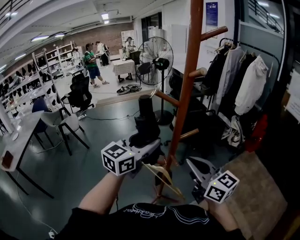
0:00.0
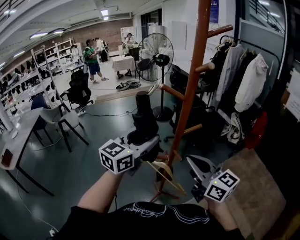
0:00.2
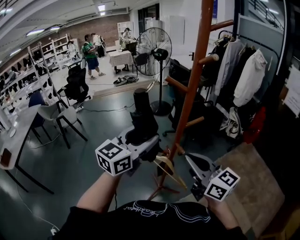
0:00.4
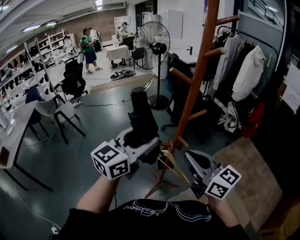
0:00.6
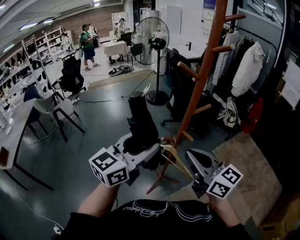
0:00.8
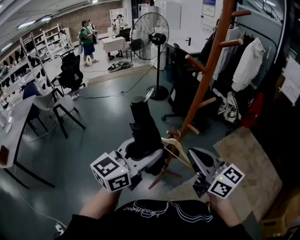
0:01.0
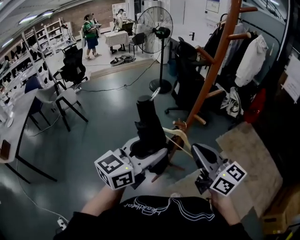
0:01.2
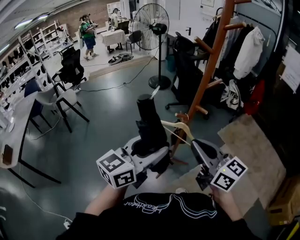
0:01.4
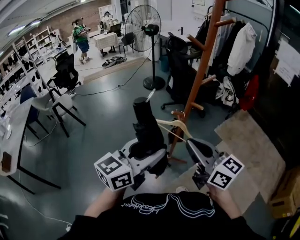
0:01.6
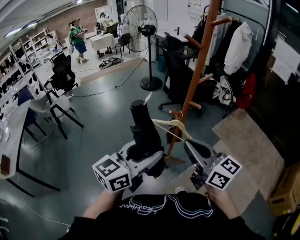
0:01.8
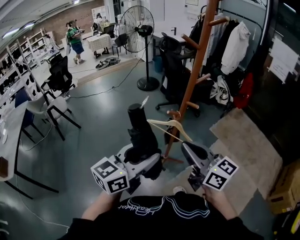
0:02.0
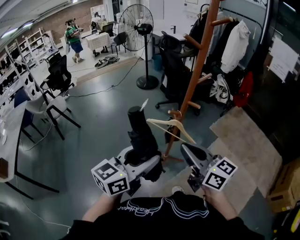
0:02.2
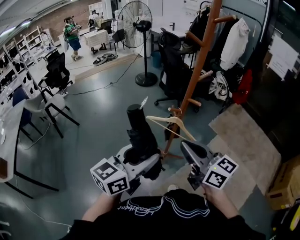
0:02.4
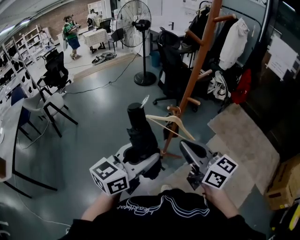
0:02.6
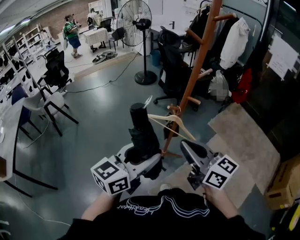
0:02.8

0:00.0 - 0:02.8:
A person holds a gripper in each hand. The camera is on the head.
0:00.0 - 0:01.4: Both grippers move backward and to the left, roughly 20 cm.
0:01.4 - 0:02.8: The grippers move only a little.

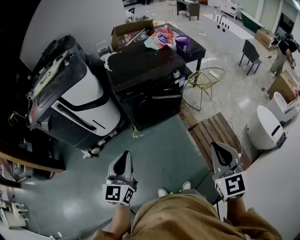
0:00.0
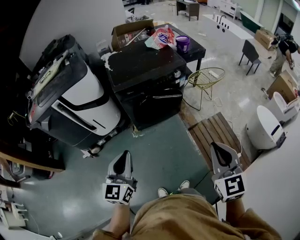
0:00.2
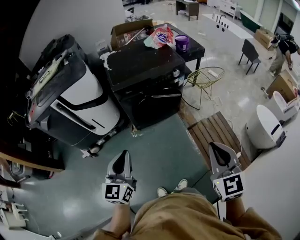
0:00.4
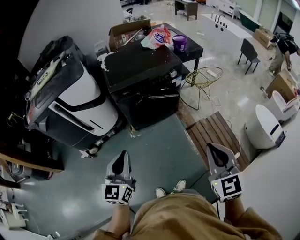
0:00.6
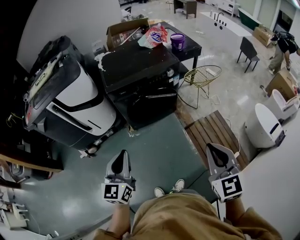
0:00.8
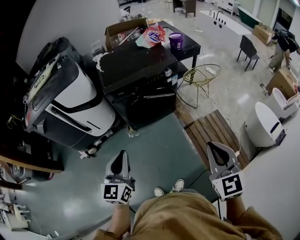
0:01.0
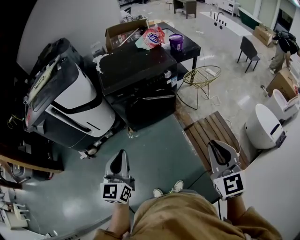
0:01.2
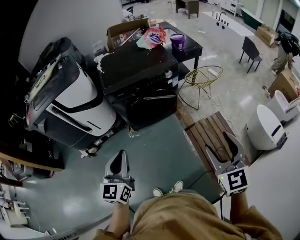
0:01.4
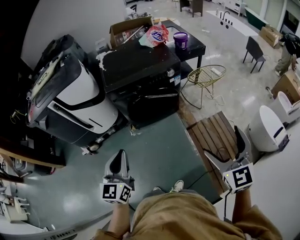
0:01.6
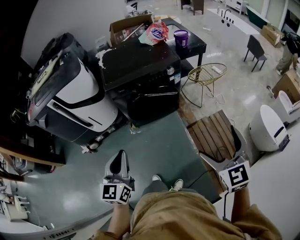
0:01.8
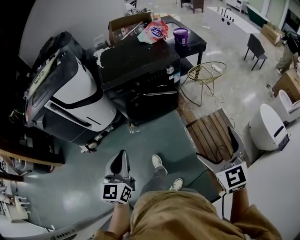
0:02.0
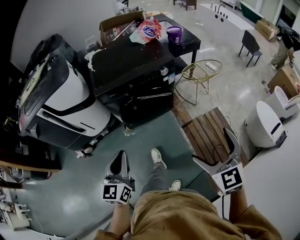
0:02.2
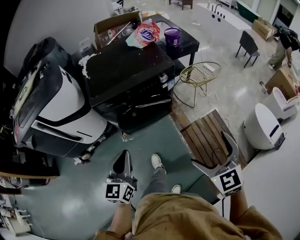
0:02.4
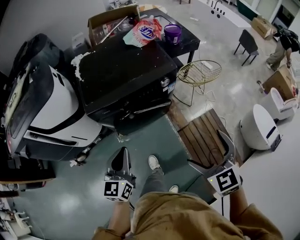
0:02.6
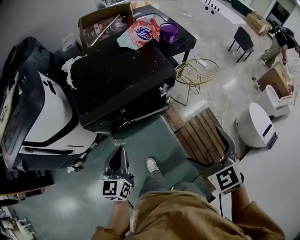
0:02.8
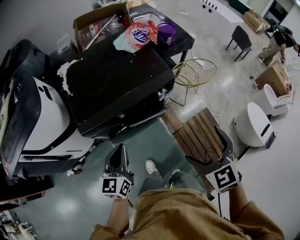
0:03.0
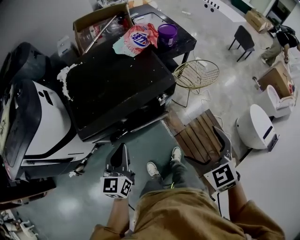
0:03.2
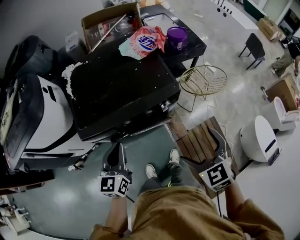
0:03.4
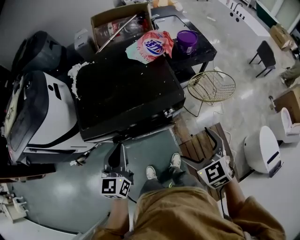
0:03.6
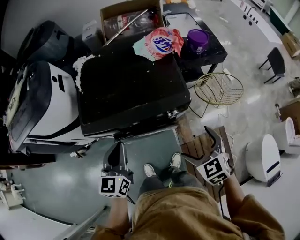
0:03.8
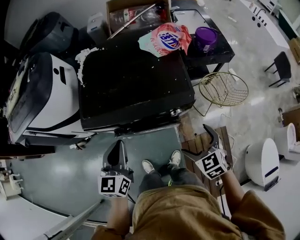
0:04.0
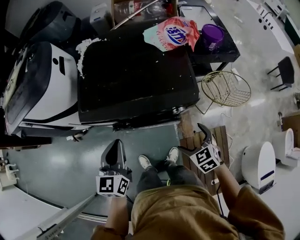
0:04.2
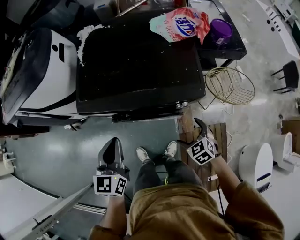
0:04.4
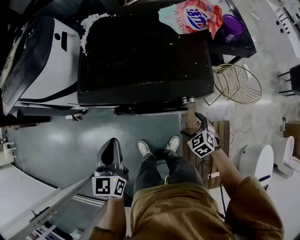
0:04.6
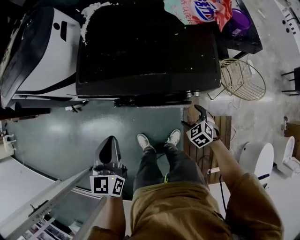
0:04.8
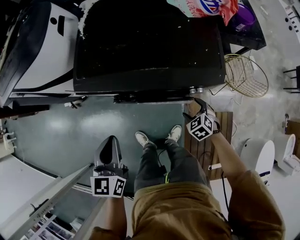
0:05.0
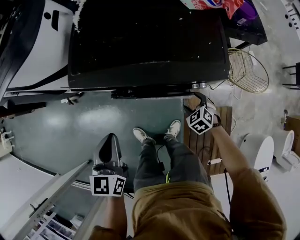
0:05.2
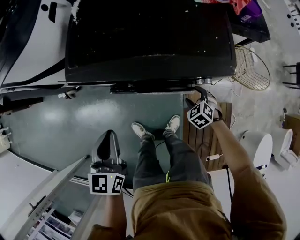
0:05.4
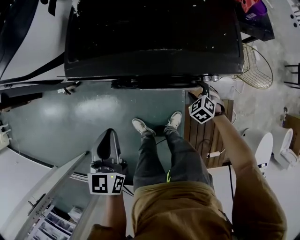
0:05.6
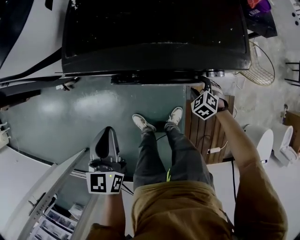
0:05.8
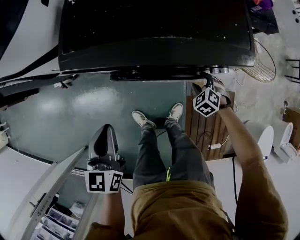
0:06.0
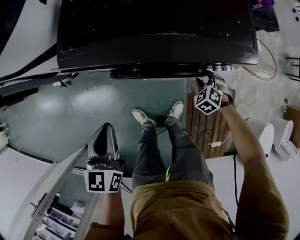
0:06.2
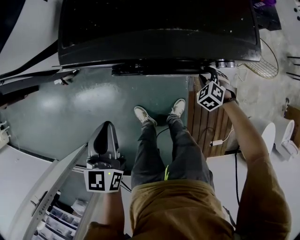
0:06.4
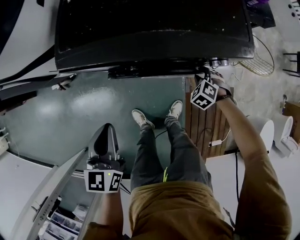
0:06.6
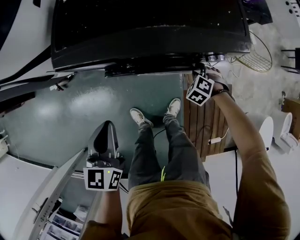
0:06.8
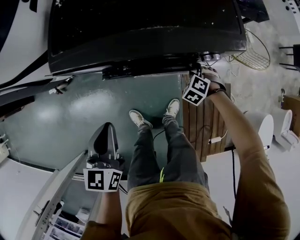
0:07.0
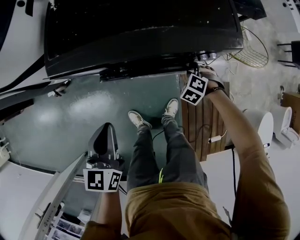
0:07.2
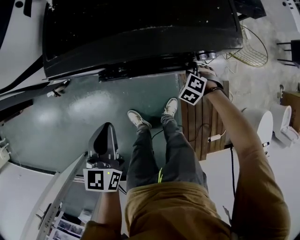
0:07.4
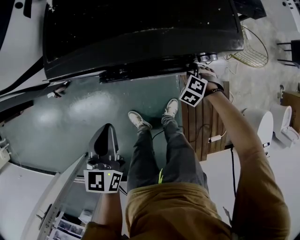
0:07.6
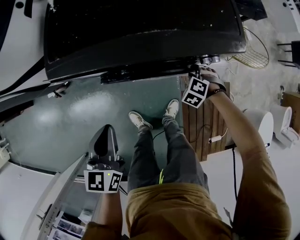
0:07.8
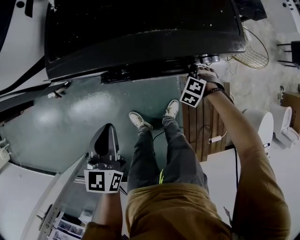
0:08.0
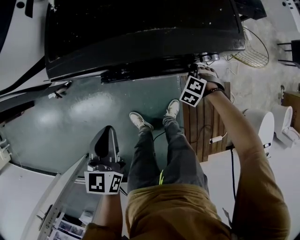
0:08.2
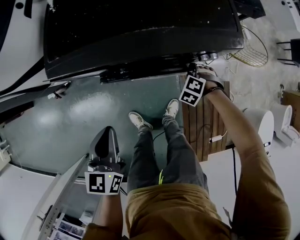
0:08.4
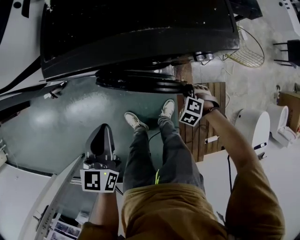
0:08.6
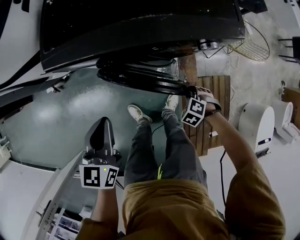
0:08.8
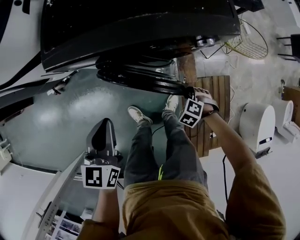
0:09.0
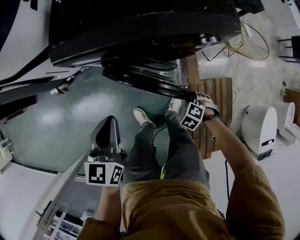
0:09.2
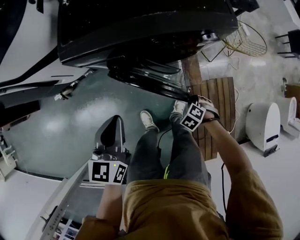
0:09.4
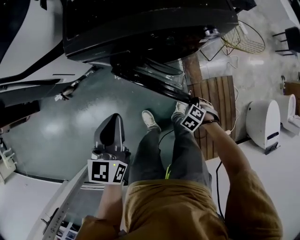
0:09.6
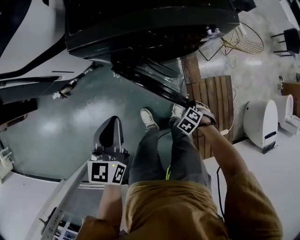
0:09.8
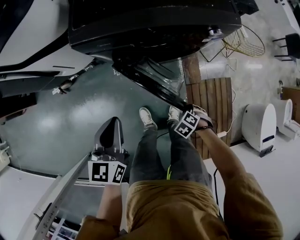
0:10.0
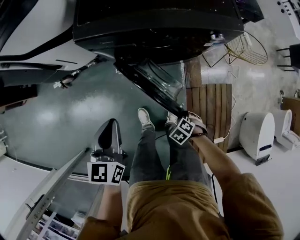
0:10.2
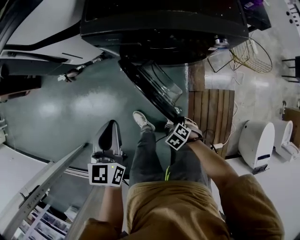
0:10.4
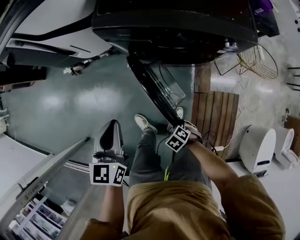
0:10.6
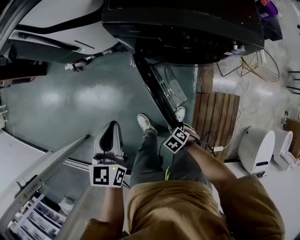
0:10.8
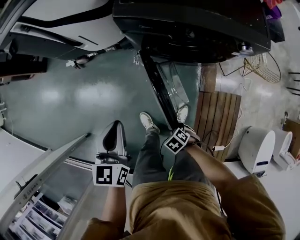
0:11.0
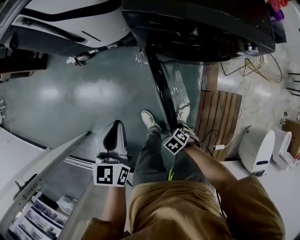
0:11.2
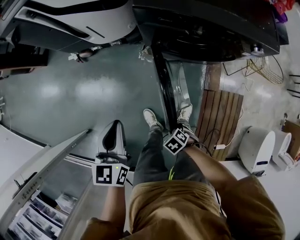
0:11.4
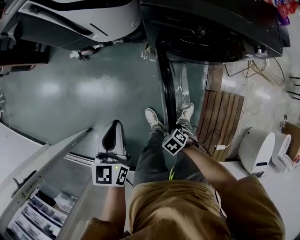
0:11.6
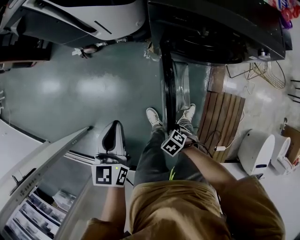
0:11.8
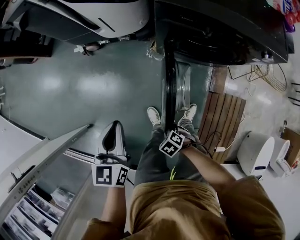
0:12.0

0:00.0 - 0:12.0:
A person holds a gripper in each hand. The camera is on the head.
0:00.0 - 0:01.6: The left gripper is displaced to the right by some 5 cm; the right gripper travels to the right by some 10 cm, and opens its fingers.
0:01.6 - 0:03.0: The two grippers go about 30 cm forward. The right gripper swivels approximately 20 degrees.
0:03.0 - 0:04.4: The left gripper rotates some 30 degrees, while the right gripper moves downward, some 30 cm, and changes its angle by approximately 30 degrees.
0:04.4 - 0:06.0: The right gripper goes some 20 cm downward and forward, turns by approximately 30 degrees, and closes its fingers, while the left gripper heads downward and to the left, covering some 15 cm.
0:06.0 - 0:07.6: The grippers make only small movements.
0:07.6 - 0:09.0: The right gripper shifts by approximately 15 cm.
0:09.0 - 0:10.4: The left gripper changes place by approximately 10 cm; the right gripper shifts by approximately 20 cm.
0:10.4 - 0:12.0: The left gripper moves about 20 cm, while the right gripper ends up some 25 cm from where it was.

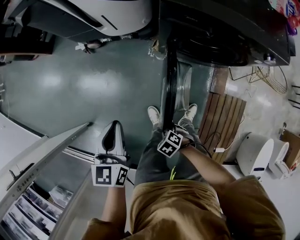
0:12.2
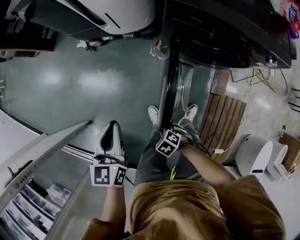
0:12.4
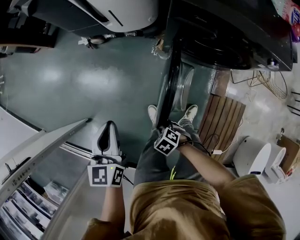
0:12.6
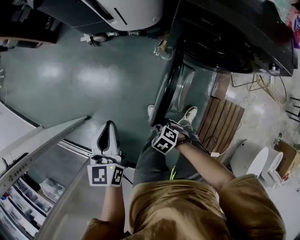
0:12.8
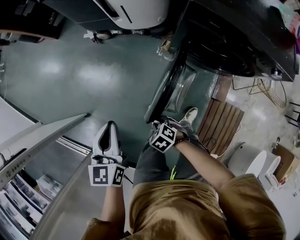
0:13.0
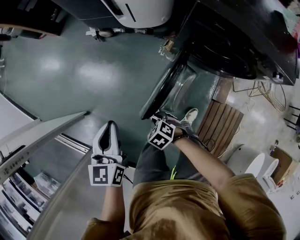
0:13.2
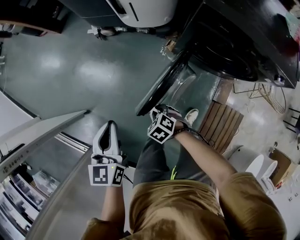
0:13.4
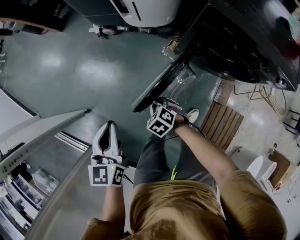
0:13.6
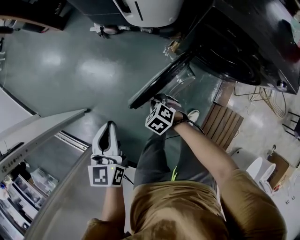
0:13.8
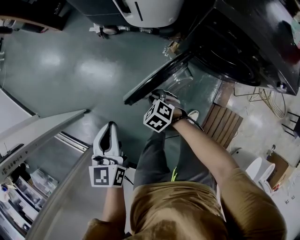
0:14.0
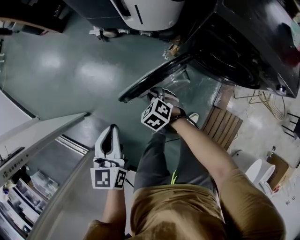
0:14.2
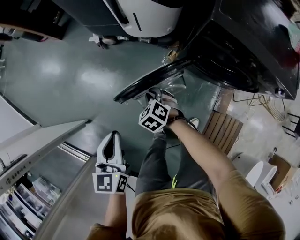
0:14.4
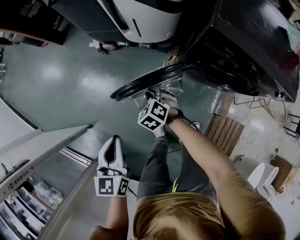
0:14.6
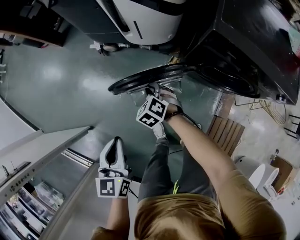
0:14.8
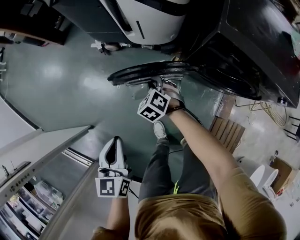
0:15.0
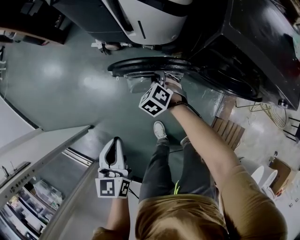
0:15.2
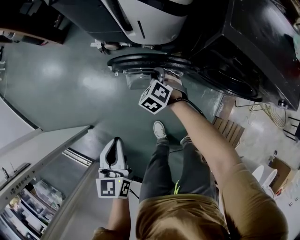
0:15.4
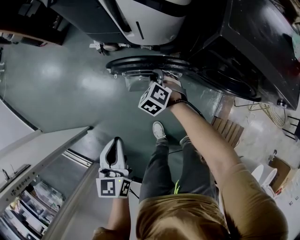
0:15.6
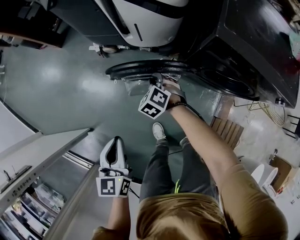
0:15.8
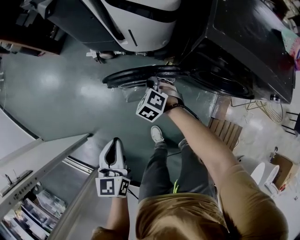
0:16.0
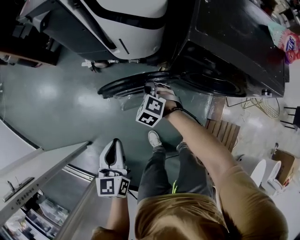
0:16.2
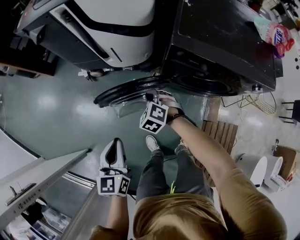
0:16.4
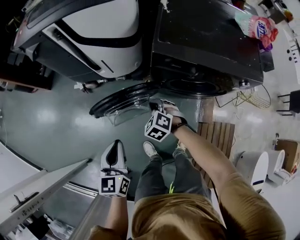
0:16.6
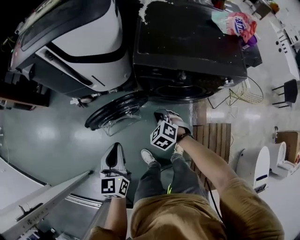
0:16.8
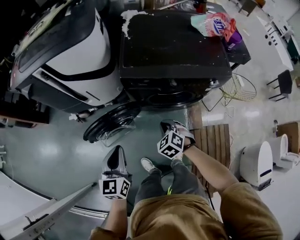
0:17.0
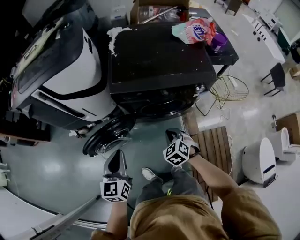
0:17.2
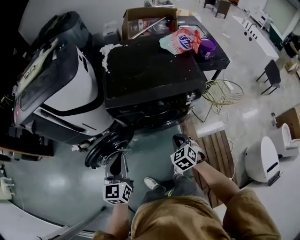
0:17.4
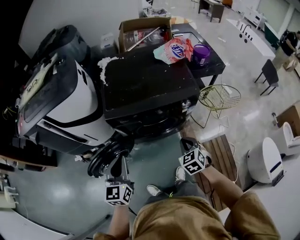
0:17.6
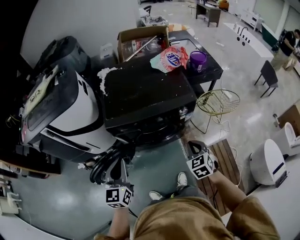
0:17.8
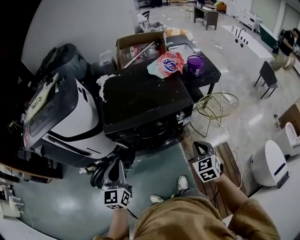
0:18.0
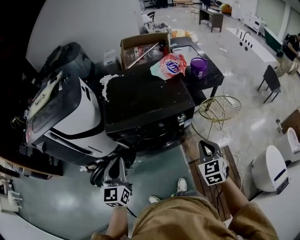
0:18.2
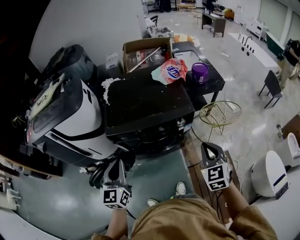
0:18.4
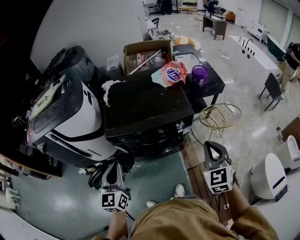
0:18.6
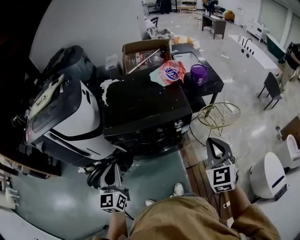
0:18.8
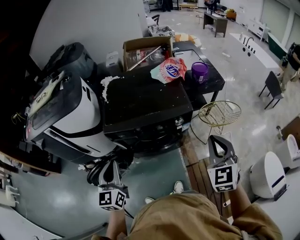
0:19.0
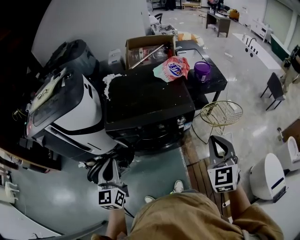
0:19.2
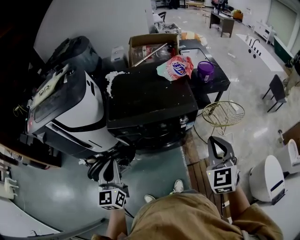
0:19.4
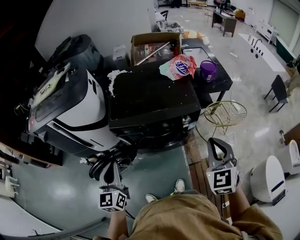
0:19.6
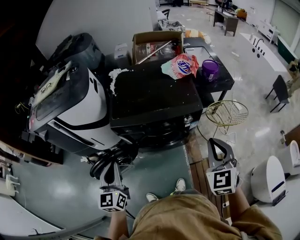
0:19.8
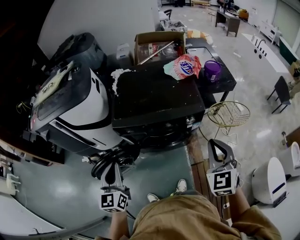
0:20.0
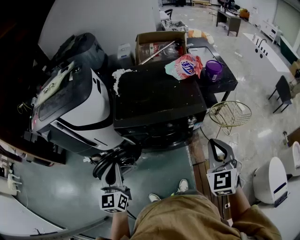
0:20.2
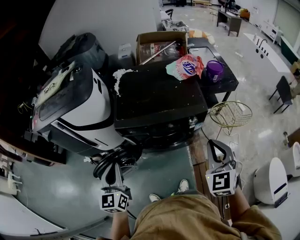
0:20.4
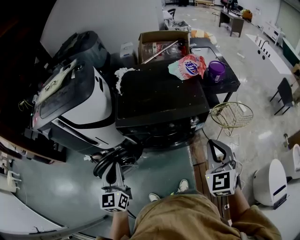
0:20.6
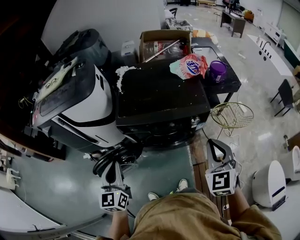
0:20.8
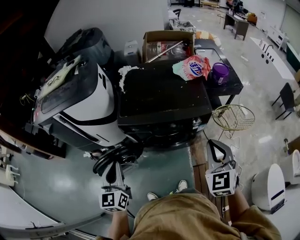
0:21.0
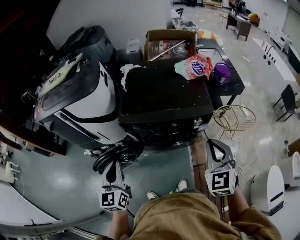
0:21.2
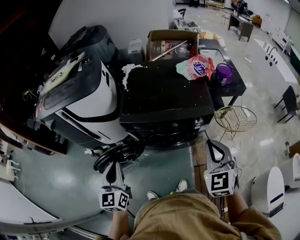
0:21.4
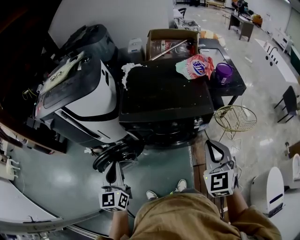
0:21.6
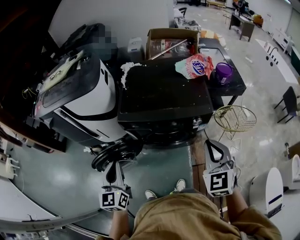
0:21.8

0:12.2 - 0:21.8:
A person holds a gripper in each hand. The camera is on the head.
0:12.2 - 0:13.8: The right gripper shifts by approximately 20 cm, and turns by about 20 degrees. The left gripper ends up roughly 10 cm from where it was.
0:13.8 - 0:15.4: The right gripper moves forward, about 25 cm, and swivels about 20 degrees, while the left gripper is displaced forward by some 5 cm.
0:15.4 - 0:17.0: The right gripper shifts about 35 cm to the right, backward and upward, and rotates some 20 degrees. The left gripper goes roughly 25 cm to the right and upward, and turns by roughly 30 degrees.
0:17.0 - 0:18.6: The right gripper is displaced to the right and upward by some 50 cm, and tips its fingers upward by some 40 degrees; the left gripper moves upward, to the right and forward, about 25 cm.
0:18.6 - 0:20.2: The left gripper goes some 5 cm to the left.
0:20.2 - 0:21.8: The grippers move only a little.
